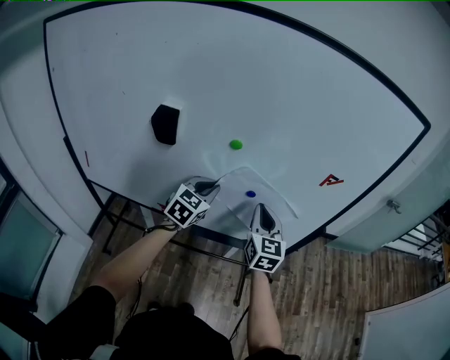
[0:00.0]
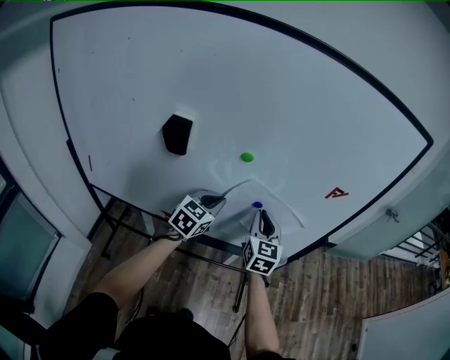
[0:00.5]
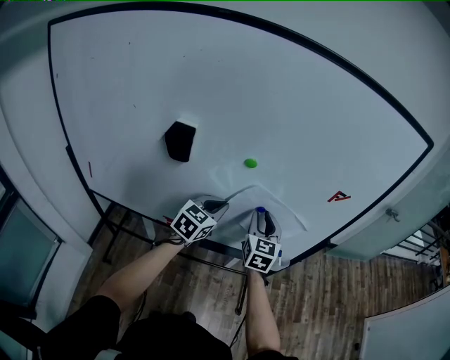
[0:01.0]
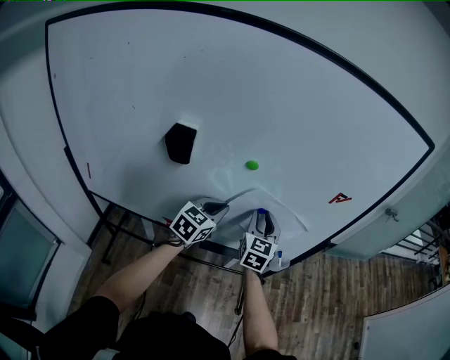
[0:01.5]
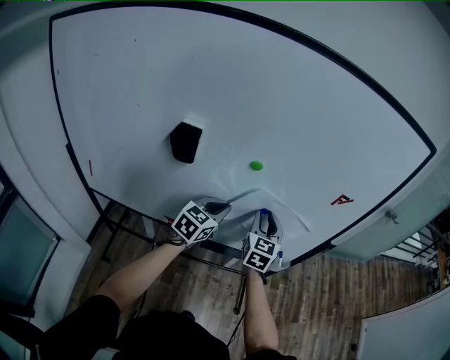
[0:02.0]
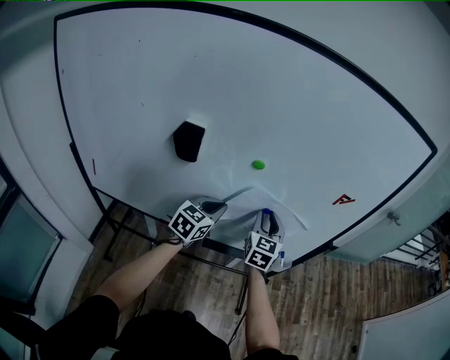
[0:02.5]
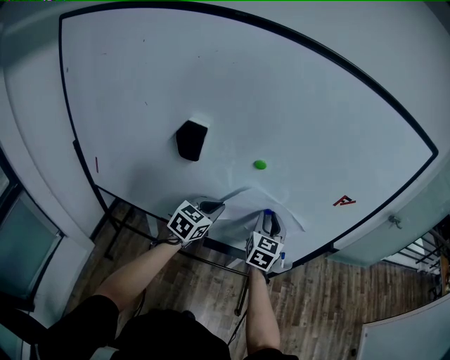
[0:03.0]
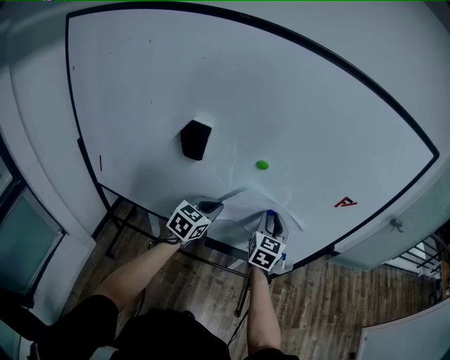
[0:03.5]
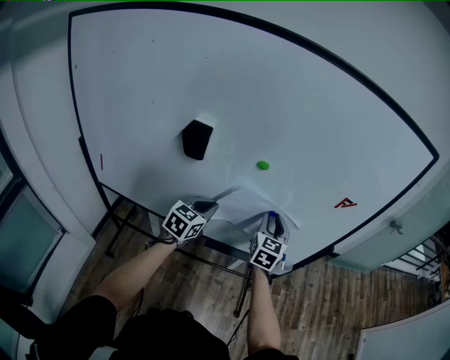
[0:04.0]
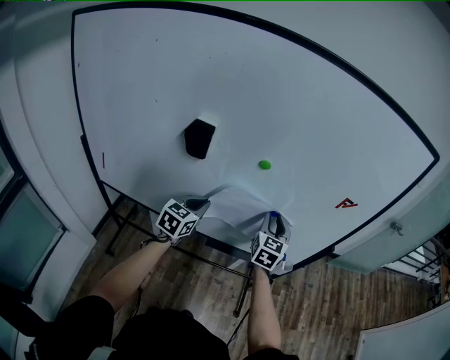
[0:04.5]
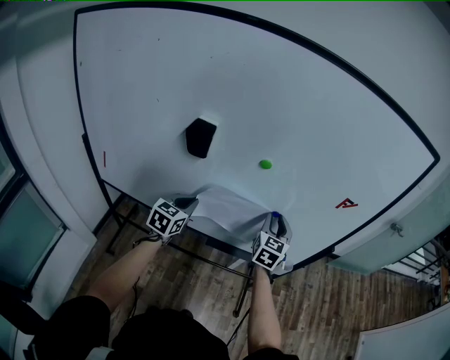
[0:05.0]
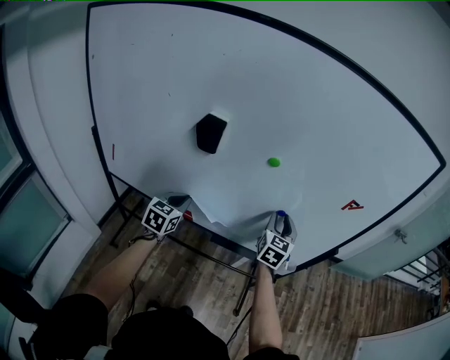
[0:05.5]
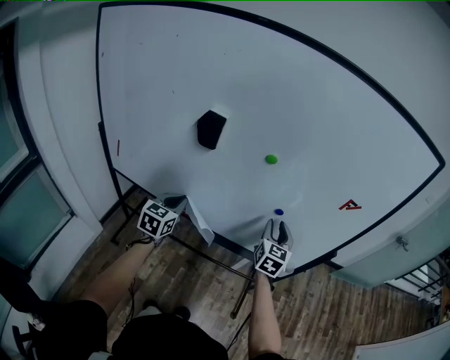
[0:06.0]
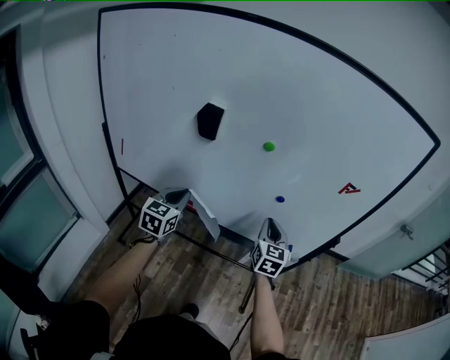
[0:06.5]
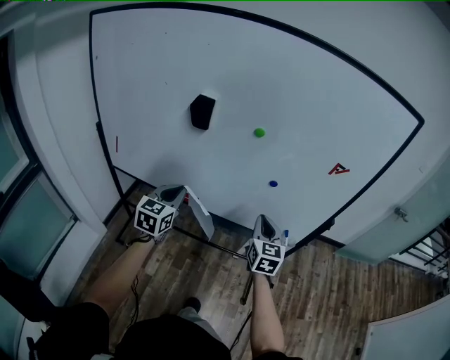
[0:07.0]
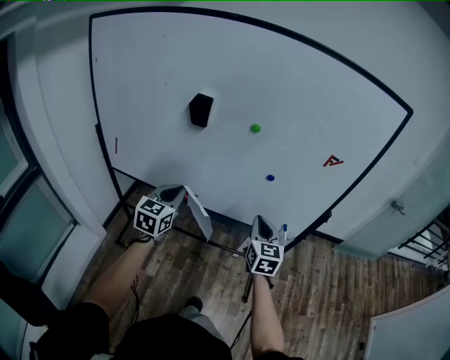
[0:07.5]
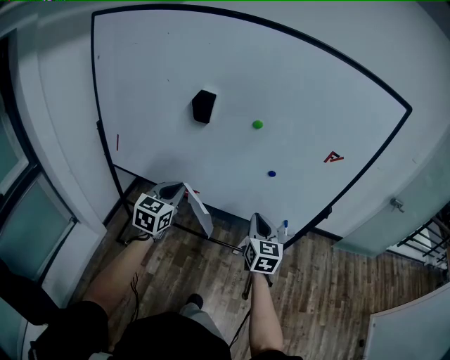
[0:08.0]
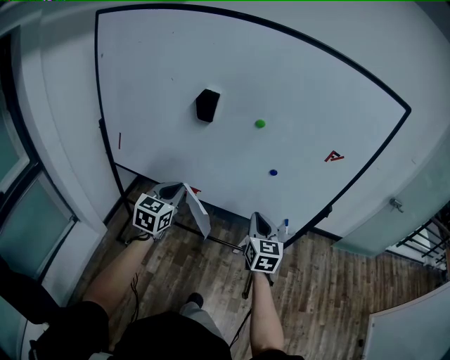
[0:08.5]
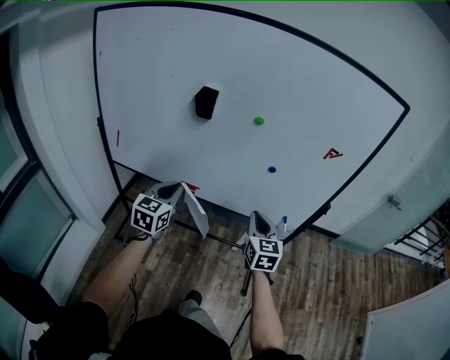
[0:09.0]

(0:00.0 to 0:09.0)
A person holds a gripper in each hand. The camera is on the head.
0:00.0 - 0:02.0: The right gripper changes place by some 5 cm, and opens its fingers.
0:02.0 - 0:04.5: The left gripper shifts roughly 10 cm to the left.
0:04.5 - 0:07.0: The grippers both shift backward by approximately 15 cm. The right gripper closes.
0:07.0 - 0:09.0: The two grippers go about 5 cm backward.

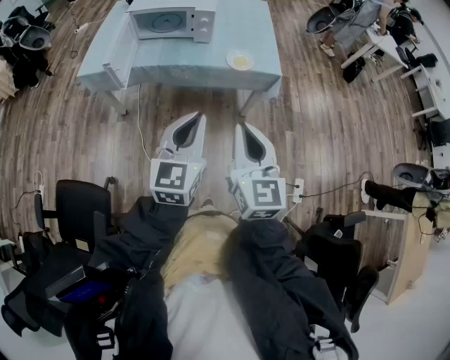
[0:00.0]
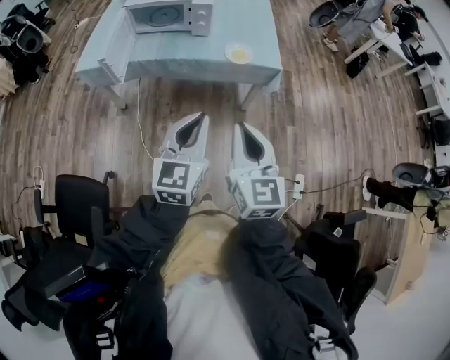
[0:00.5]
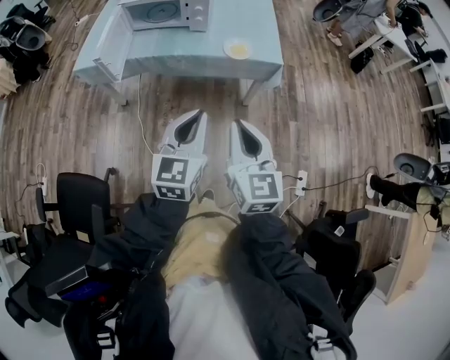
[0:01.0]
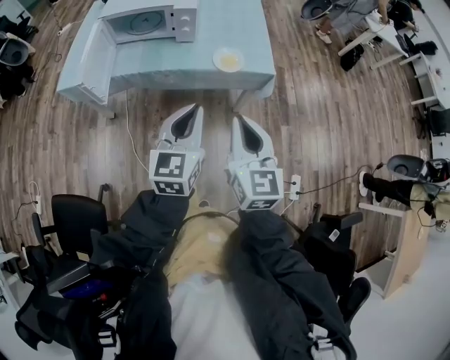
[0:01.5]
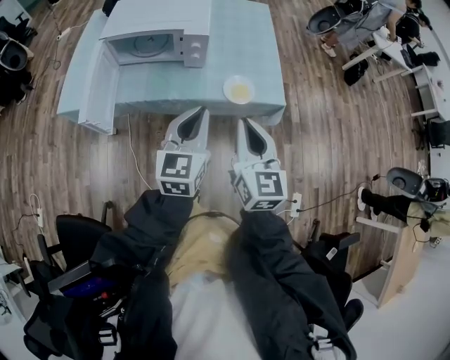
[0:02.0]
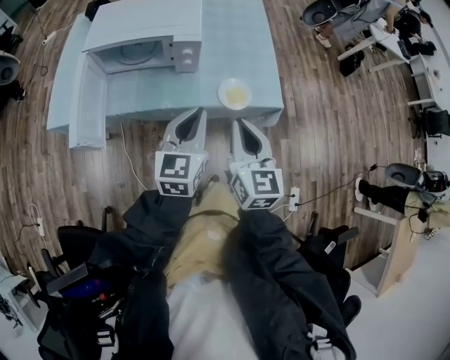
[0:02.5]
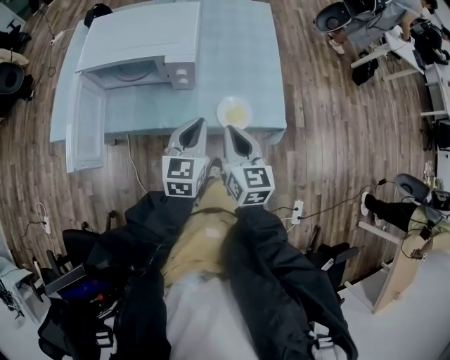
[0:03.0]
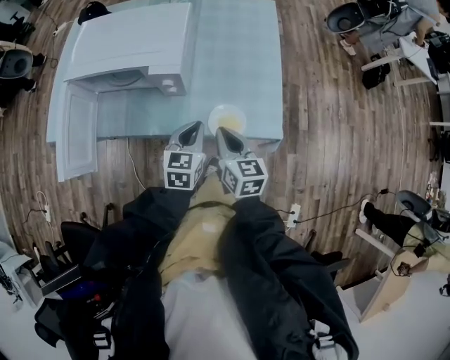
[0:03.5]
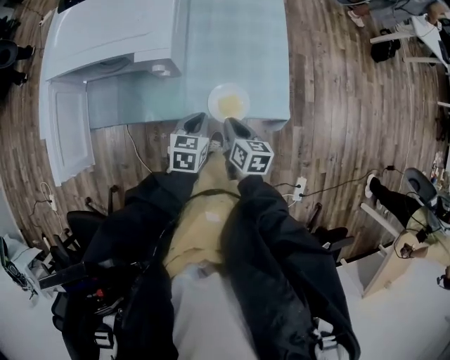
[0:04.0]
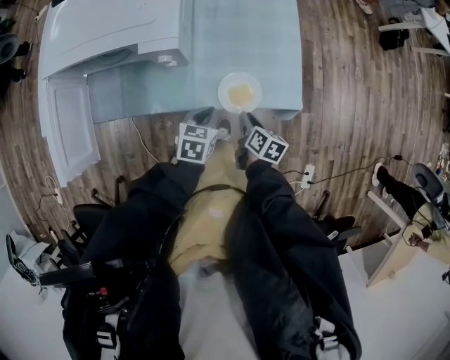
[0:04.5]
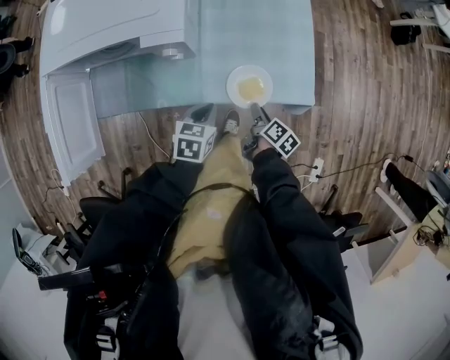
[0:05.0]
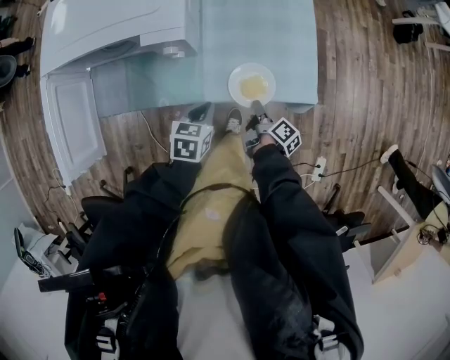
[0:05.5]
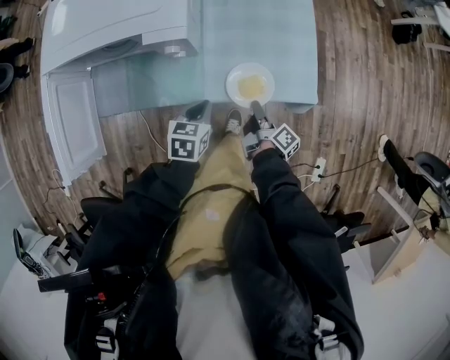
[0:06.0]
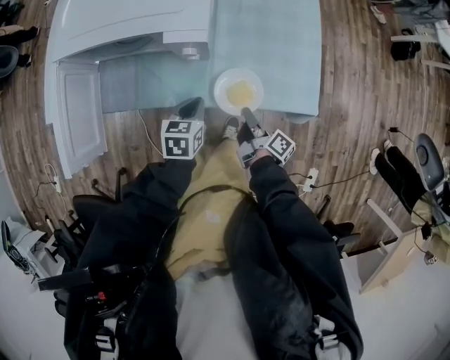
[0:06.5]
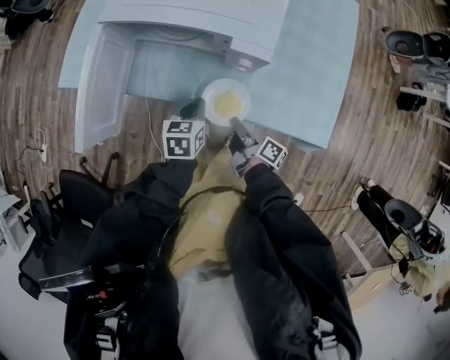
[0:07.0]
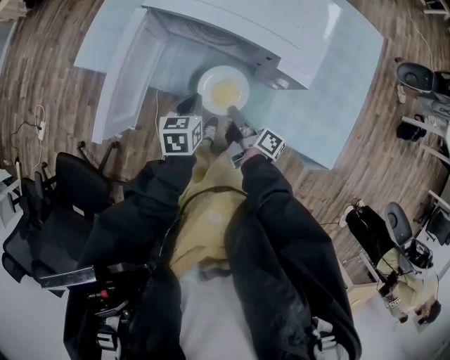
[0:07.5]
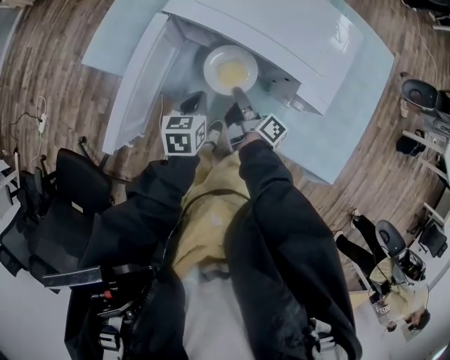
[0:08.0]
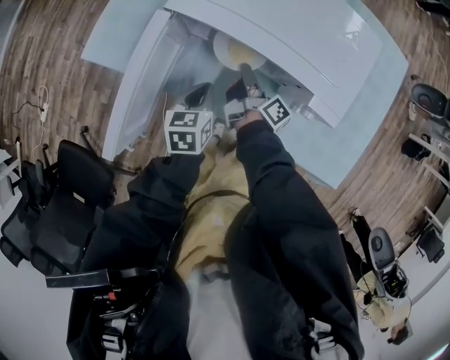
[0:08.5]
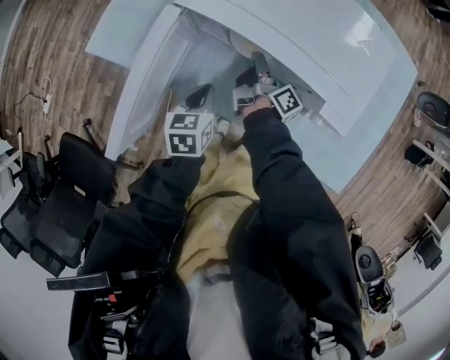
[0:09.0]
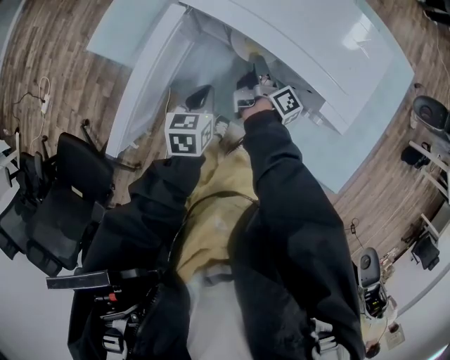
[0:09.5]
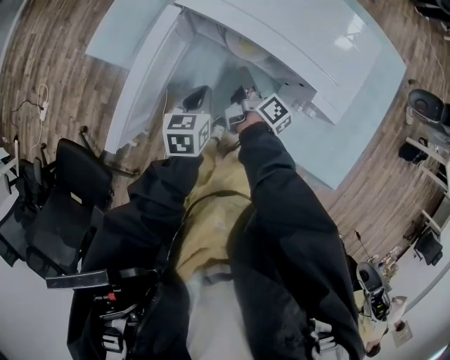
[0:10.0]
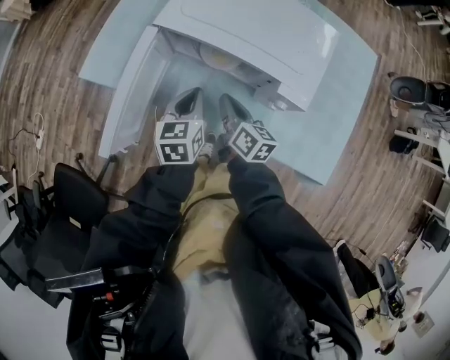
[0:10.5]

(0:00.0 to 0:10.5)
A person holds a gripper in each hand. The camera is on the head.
0:00.0 - 0:02.0: Both grippers move forward, roughly 25 cm.
0:02.0 - 0:04.0: Both grippers travel together downward and forward, about 30 cm. The left gripper points its fingers approximately 30 degrees further downward. Meanwhile the right gripper turns by some 40 degrees.
0:04.0 - 0:06.5: The right gripper is displaced downward by roughly 5 cm, rotates around the line of its fingers by roughly 50 degrees, clockwise from behind, and opens and closes again; the left gripper travels to the left by some 10 cm.
0:06.5 - 0:08.5: The right gripper ends up roughly 40 cm from where it was; the left gripper ends up approximately 25 cm from where it was, and rotates roughly 30 degrees.
0:08.5 - 0:10.5: The right gripper is displaced upward and backward by about 10 cm, rotates around the line of its fingers by some 40 degrees, counterclockwise from behind, and opens, then closes again. Meanwhile the left gripper is displaced upward by roughly 5 cm.

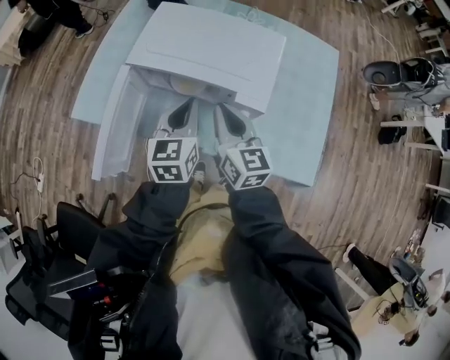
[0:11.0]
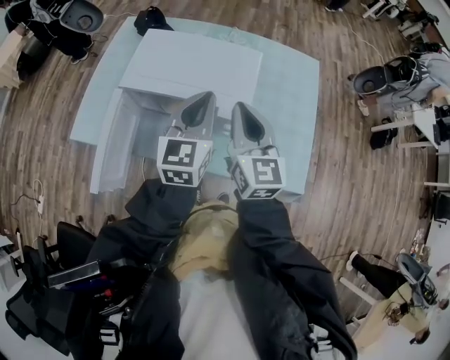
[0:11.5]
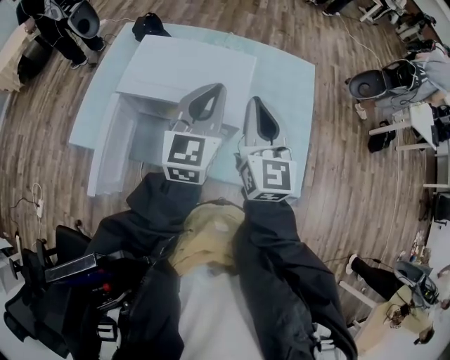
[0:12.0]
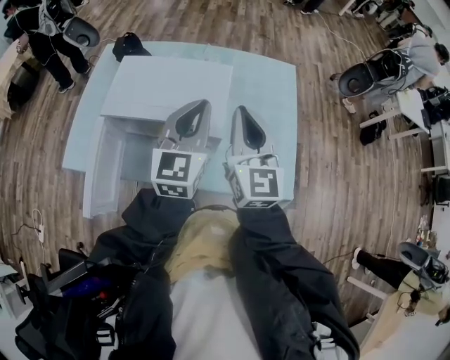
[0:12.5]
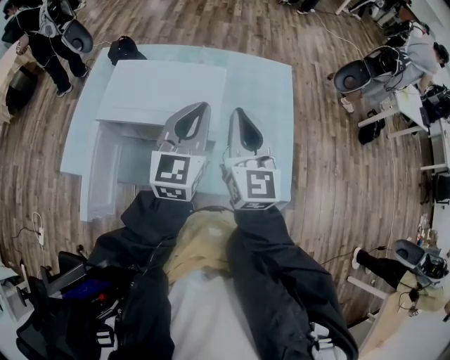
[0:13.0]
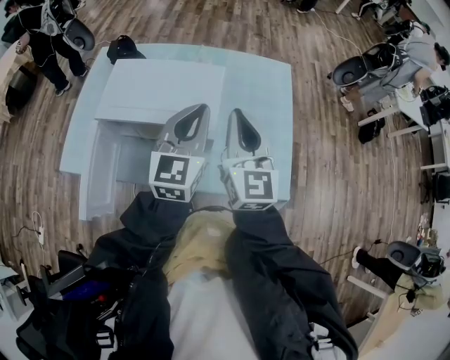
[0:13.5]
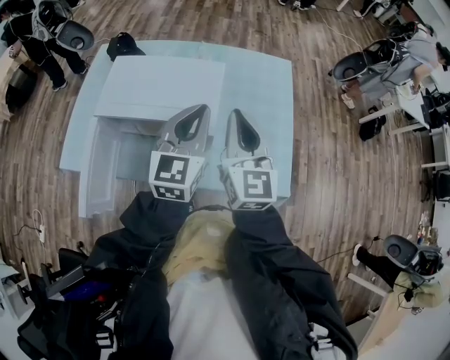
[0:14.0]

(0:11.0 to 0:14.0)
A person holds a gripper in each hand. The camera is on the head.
0:11.0 - 0:12.5: The grippers both shift upward and to the right by about 20 cm. The left gripper changes its angle by some 20 degrees; the right gripper changes its angle by roughly 30 degrees.
0:12.5 - 0:14.0: The grippers move only a little.

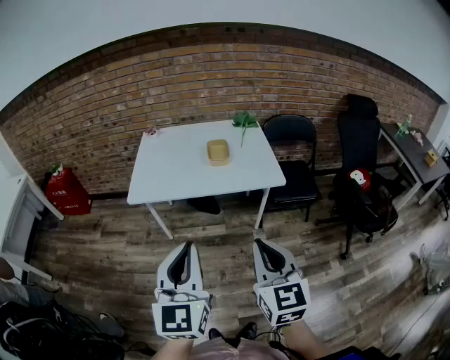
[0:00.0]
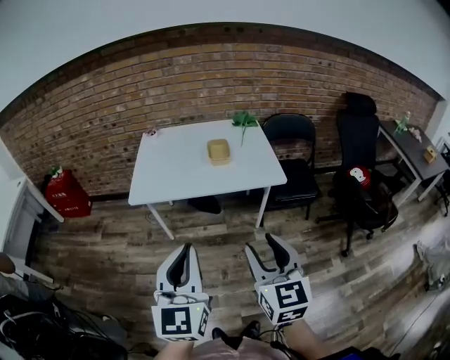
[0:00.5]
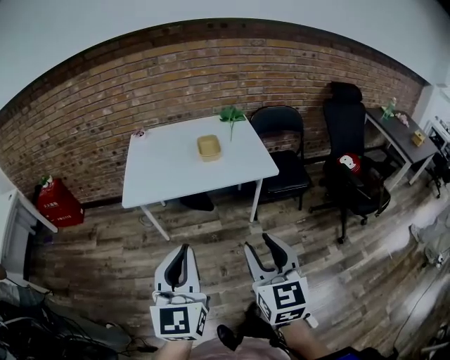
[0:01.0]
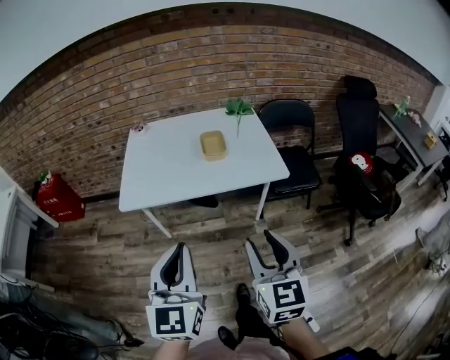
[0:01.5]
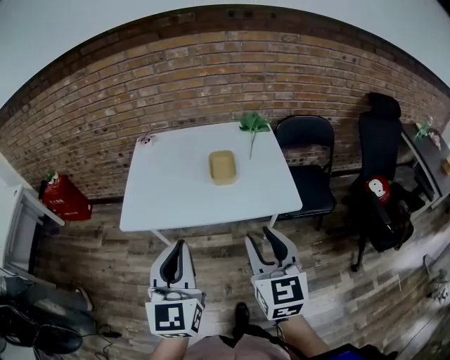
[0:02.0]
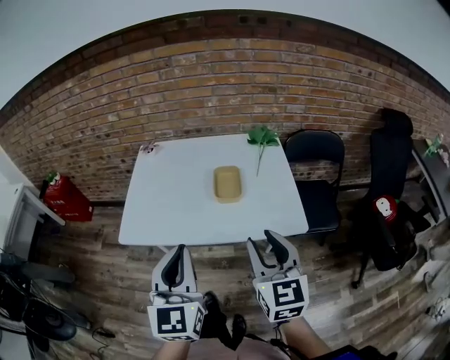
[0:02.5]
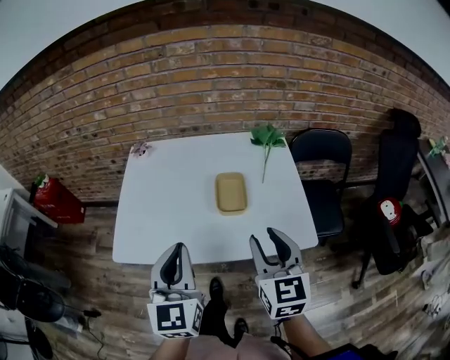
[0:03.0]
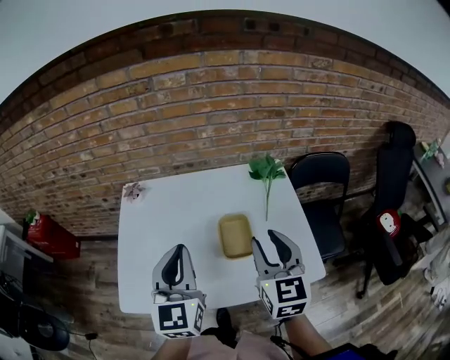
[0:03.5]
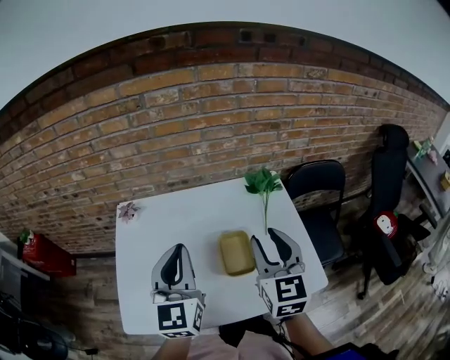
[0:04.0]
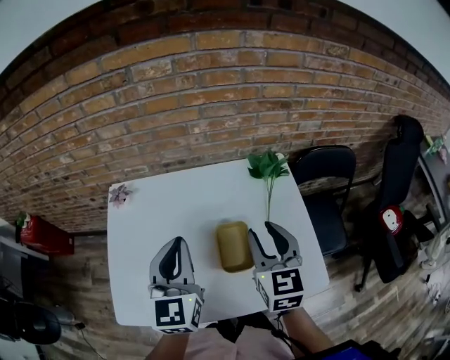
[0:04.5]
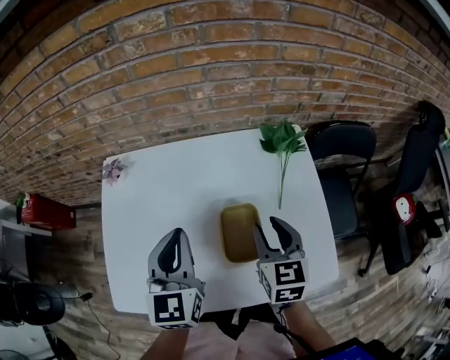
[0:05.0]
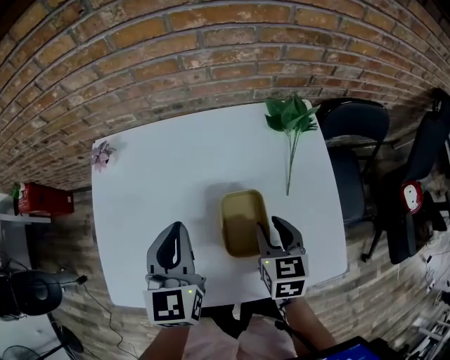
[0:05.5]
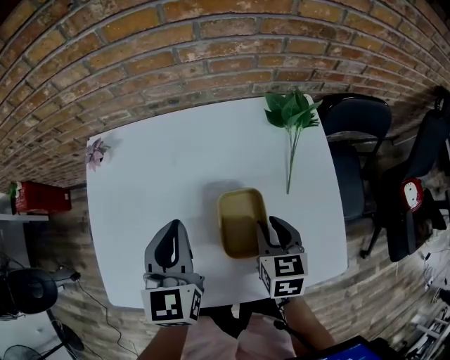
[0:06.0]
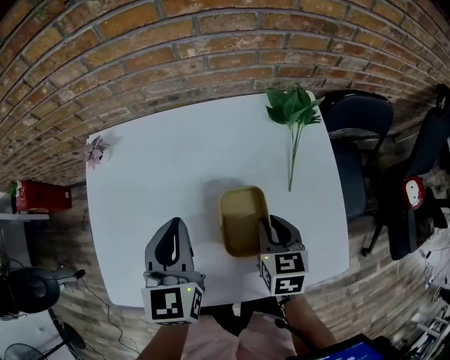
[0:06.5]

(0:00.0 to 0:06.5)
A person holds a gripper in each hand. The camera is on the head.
0:00.0 - 0:02.0: The grippers both shift forward by about 20 cm. The right gripper opens its fingers.
0:02.0 - 0:04.5: Both grippers travel together forward, roughly 40 cm.
0:04.5 - 0:06.5: The right gripper moves downward, some 20 cm, and rotates roughly 30 degrees. The left gripper goes about 10 cm downward.
